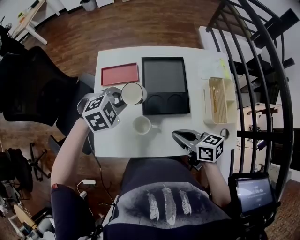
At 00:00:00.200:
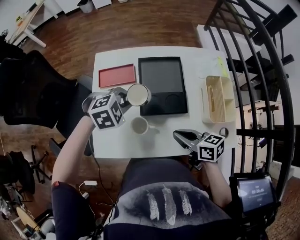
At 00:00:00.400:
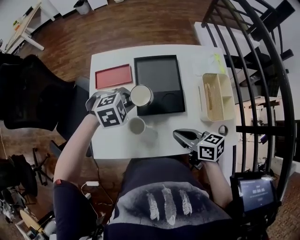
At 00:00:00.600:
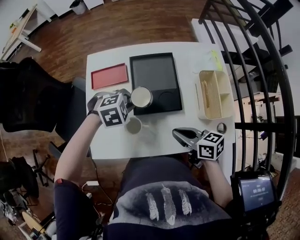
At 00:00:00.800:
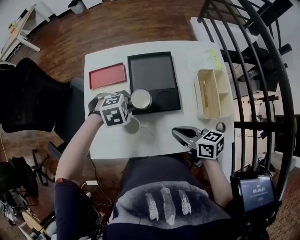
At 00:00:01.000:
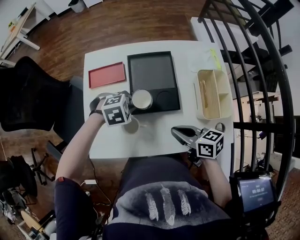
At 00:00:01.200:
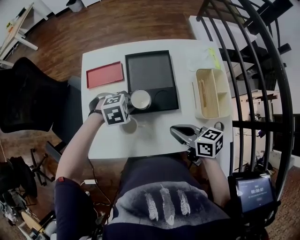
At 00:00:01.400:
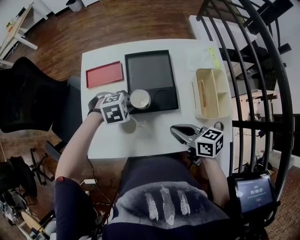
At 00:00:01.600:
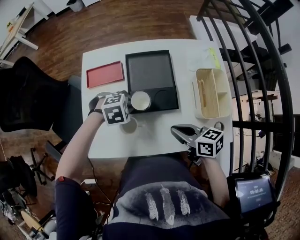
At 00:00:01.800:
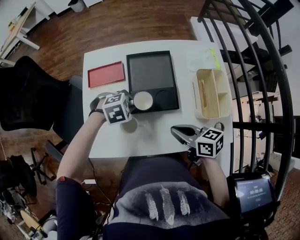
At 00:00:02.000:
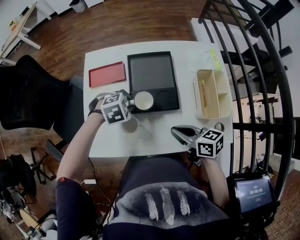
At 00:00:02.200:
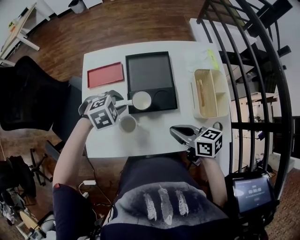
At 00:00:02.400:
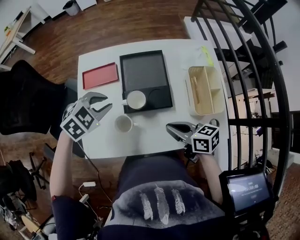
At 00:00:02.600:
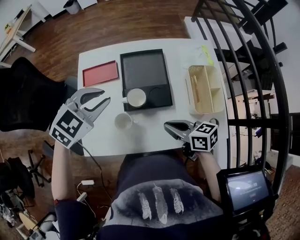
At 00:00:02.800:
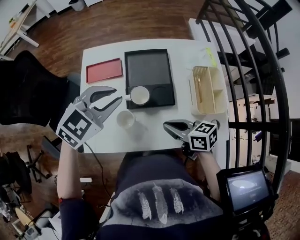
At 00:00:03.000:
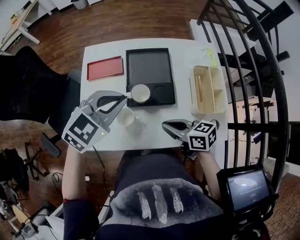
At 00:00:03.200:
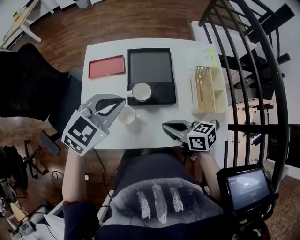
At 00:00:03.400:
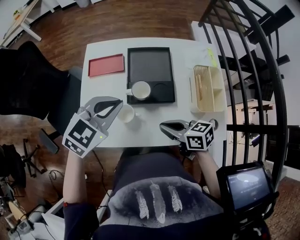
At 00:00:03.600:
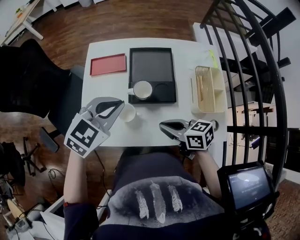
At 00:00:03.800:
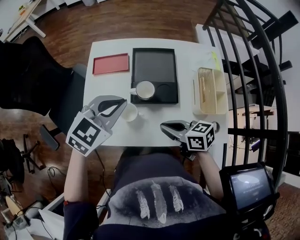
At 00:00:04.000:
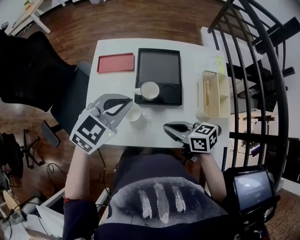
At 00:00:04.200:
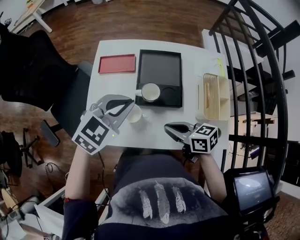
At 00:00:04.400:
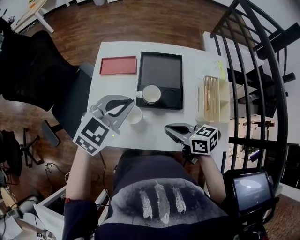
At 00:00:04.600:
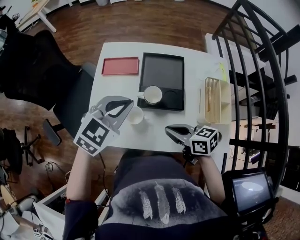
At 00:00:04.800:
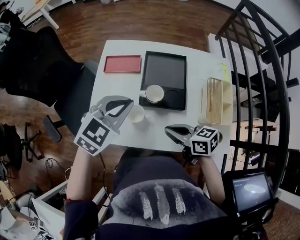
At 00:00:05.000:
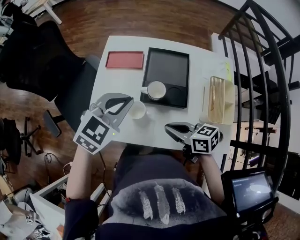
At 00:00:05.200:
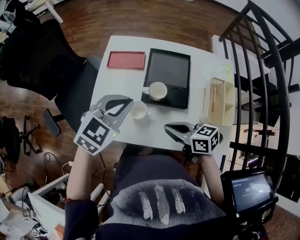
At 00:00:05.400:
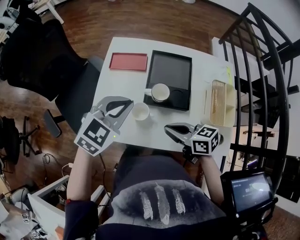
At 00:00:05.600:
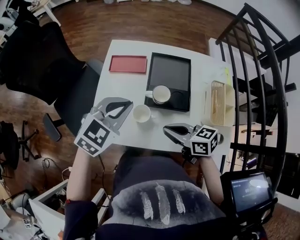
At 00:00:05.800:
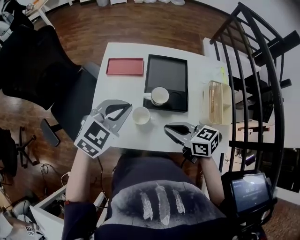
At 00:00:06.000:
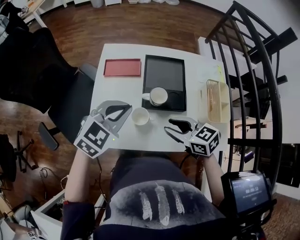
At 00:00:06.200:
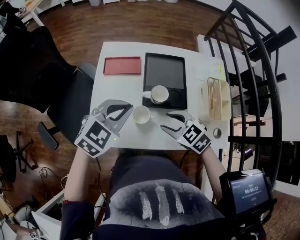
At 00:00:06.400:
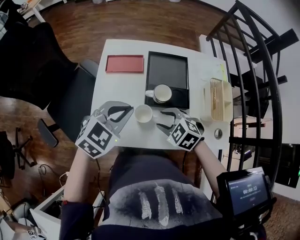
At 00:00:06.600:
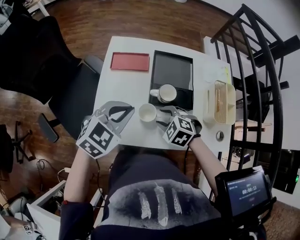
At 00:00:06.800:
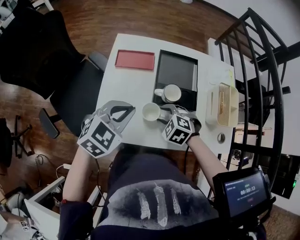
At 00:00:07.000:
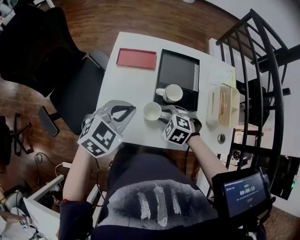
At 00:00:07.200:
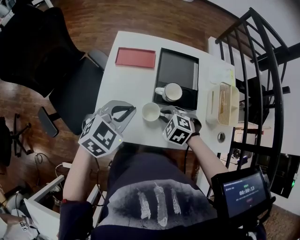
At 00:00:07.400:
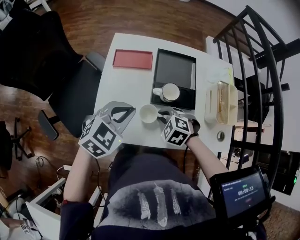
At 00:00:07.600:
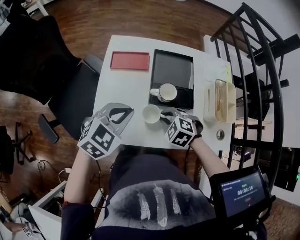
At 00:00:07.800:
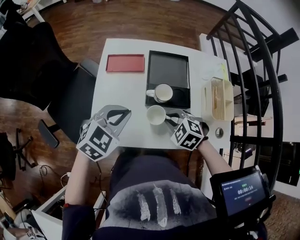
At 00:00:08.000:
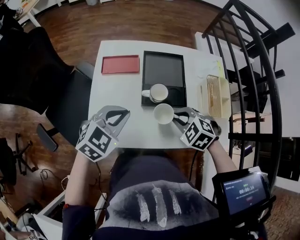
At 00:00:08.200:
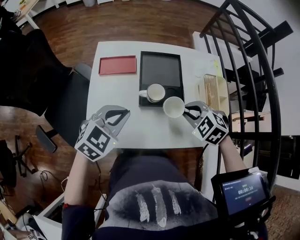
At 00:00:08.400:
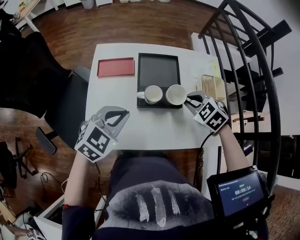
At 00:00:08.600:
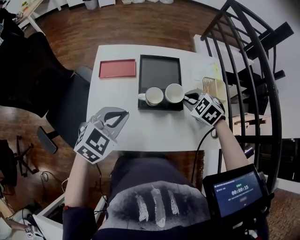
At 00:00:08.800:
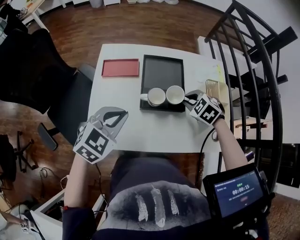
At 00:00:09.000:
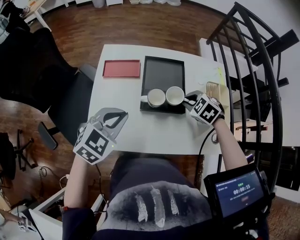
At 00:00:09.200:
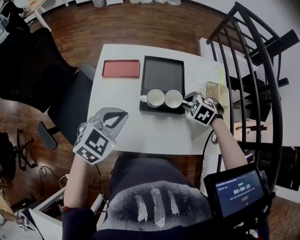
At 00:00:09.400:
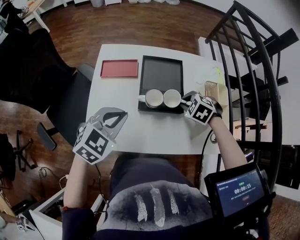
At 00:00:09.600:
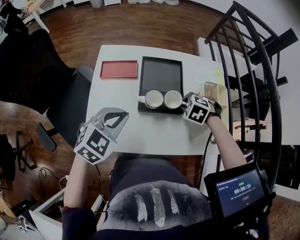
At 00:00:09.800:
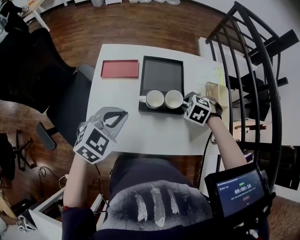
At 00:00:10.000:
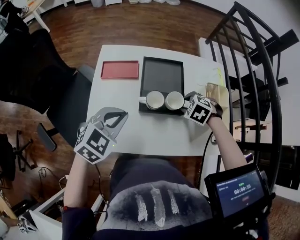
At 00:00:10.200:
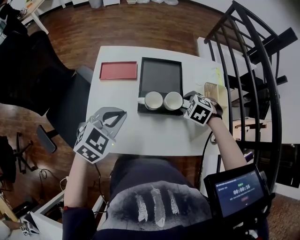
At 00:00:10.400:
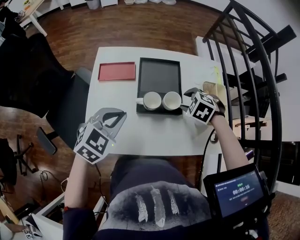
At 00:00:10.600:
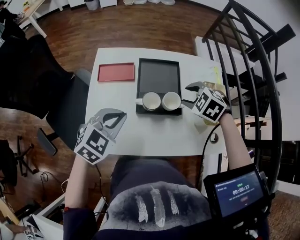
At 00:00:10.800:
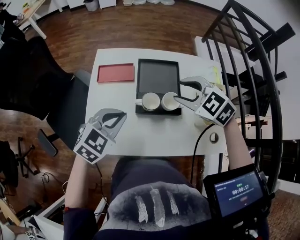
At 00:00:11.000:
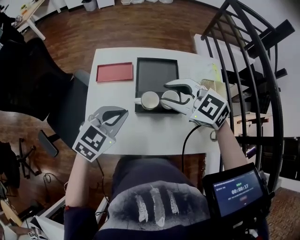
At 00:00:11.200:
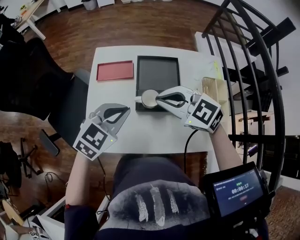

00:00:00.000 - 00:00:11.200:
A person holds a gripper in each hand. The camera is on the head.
00:00:00.000 - 00:00:01.600: The left gripper is displaced downward by about 10 cm.
00:00:01.600 - 00:00:03.200: The left gripper heads upward, covering roughly 20 cm, and points its fingers some 40 degrees further upward.
00:00:03.200 - 00:00:04.800: There are only small adjustments of the grippers.
00:00:04.800 - 00:00:06.400: The left gripper moves some 5 cm, while the right gripper moves to the left, roughly 5 cm, rotates around the line of its fingers by roughly 50 degrees, counterclockwise from behind, and opens.
00:00:06.400 - 00:00:08.000: The right gripper moves to the right, approximately 5 cm, and closes up.
00:00:08.000 - 00:00:09.600: The right gripper ends up about 10 cm from where it was.
00:00:09.600 - 00:00:11.200: The right gripper moves upward, roughly 15 cm, points its fingers about 50 degrees further upward, and opens, then closes again.

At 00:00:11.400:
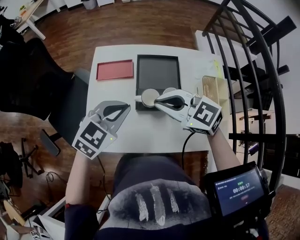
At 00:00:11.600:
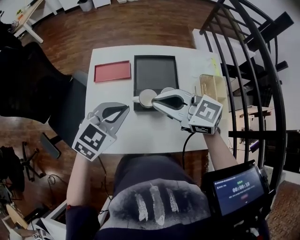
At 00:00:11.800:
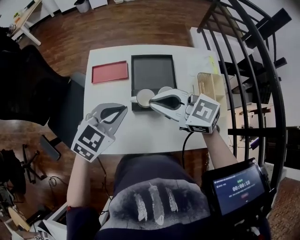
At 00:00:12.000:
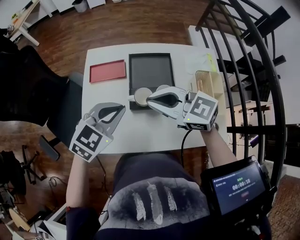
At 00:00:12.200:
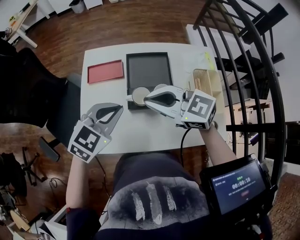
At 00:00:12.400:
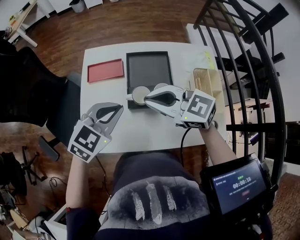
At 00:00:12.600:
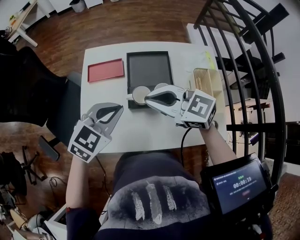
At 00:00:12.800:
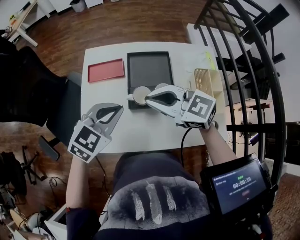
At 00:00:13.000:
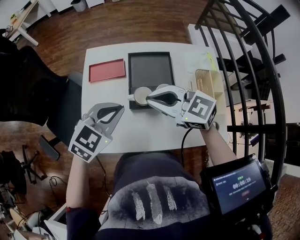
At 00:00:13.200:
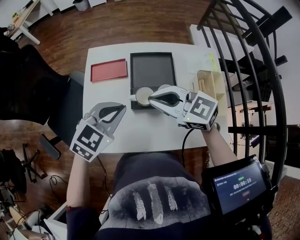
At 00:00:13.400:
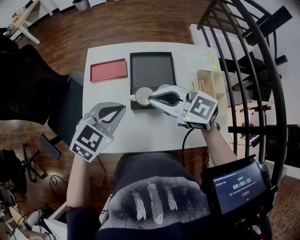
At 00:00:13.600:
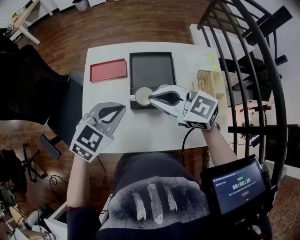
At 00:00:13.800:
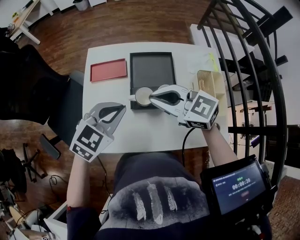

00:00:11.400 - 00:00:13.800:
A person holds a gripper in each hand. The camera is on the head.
00:00:11.400 - 00:00:13.800: The grippers move only a little.

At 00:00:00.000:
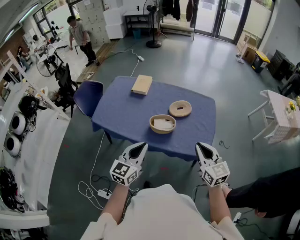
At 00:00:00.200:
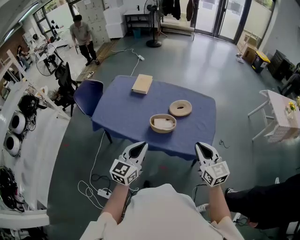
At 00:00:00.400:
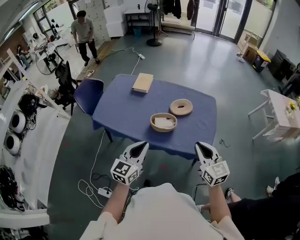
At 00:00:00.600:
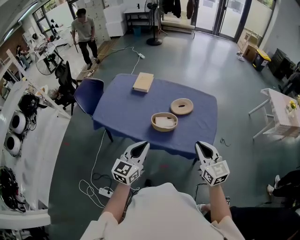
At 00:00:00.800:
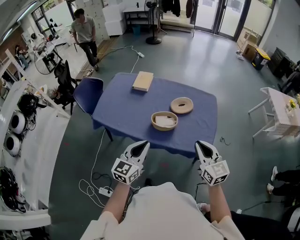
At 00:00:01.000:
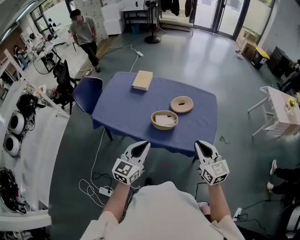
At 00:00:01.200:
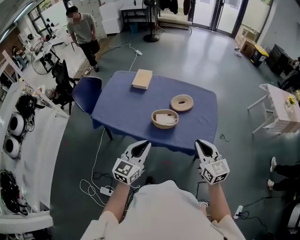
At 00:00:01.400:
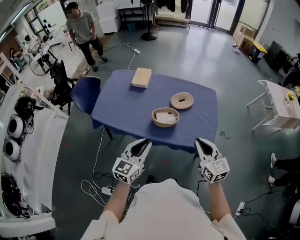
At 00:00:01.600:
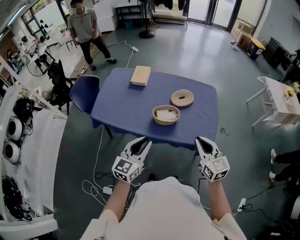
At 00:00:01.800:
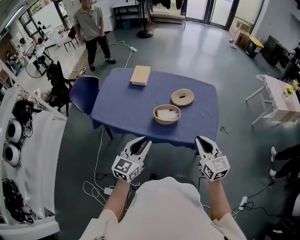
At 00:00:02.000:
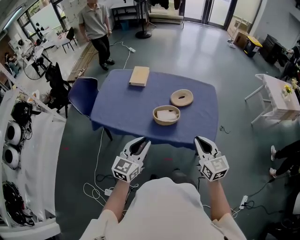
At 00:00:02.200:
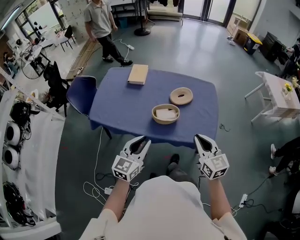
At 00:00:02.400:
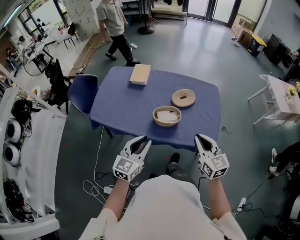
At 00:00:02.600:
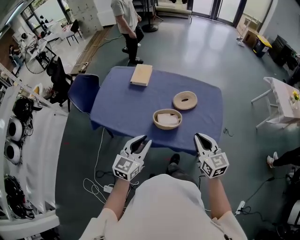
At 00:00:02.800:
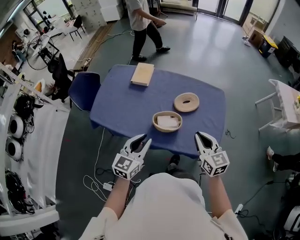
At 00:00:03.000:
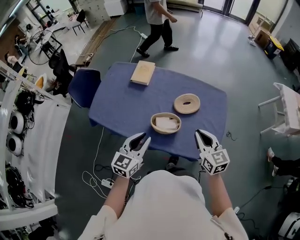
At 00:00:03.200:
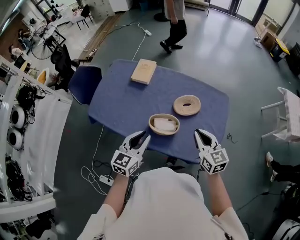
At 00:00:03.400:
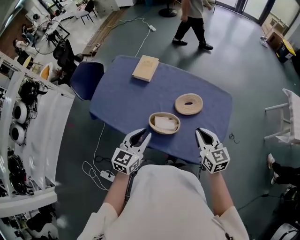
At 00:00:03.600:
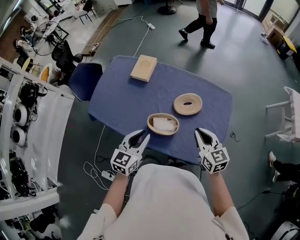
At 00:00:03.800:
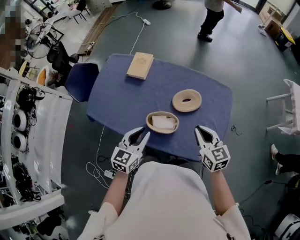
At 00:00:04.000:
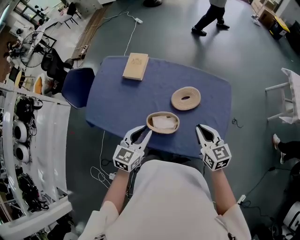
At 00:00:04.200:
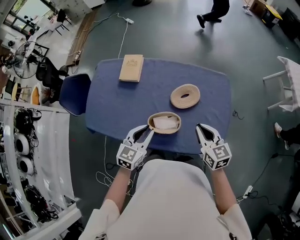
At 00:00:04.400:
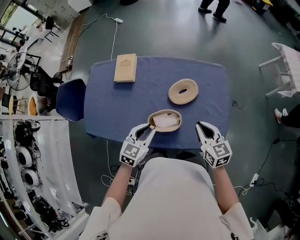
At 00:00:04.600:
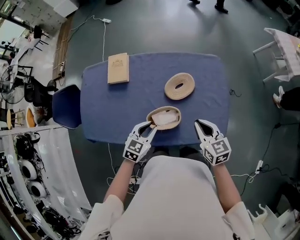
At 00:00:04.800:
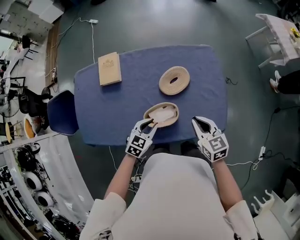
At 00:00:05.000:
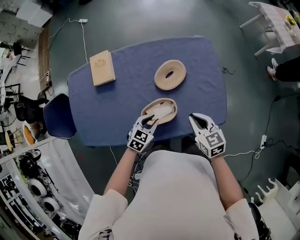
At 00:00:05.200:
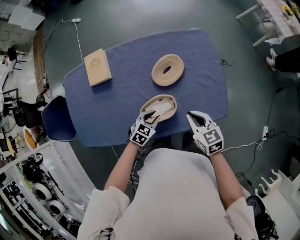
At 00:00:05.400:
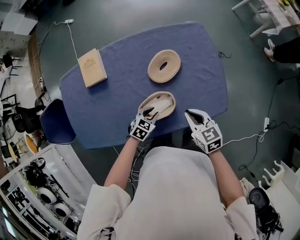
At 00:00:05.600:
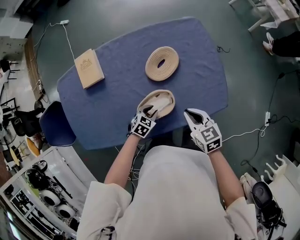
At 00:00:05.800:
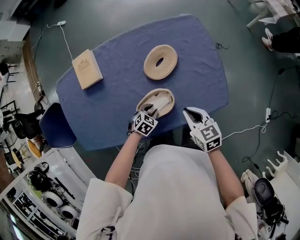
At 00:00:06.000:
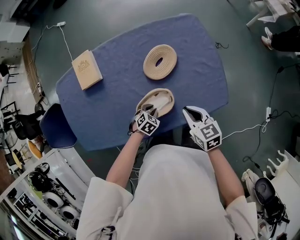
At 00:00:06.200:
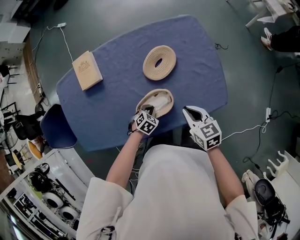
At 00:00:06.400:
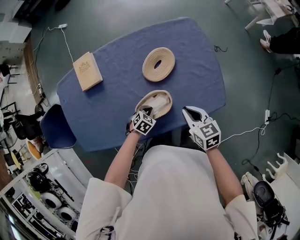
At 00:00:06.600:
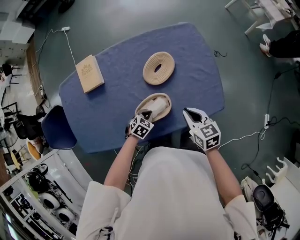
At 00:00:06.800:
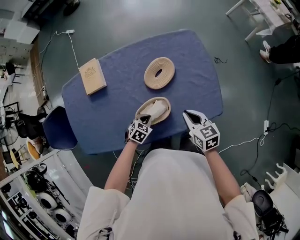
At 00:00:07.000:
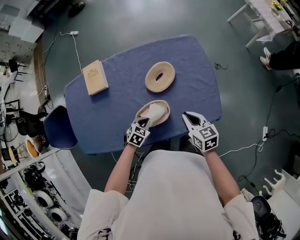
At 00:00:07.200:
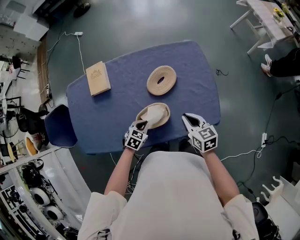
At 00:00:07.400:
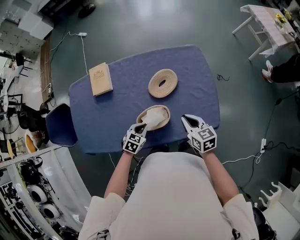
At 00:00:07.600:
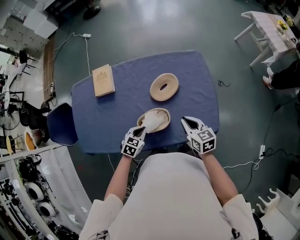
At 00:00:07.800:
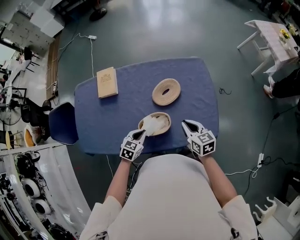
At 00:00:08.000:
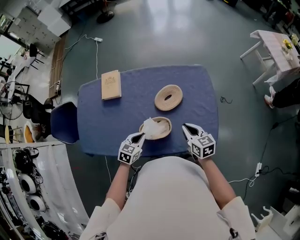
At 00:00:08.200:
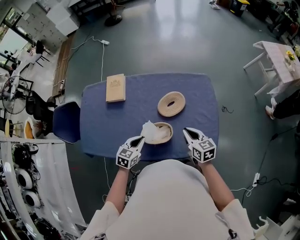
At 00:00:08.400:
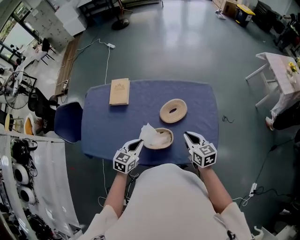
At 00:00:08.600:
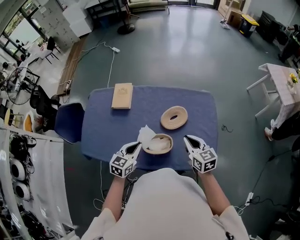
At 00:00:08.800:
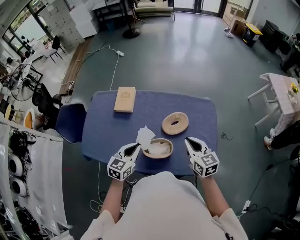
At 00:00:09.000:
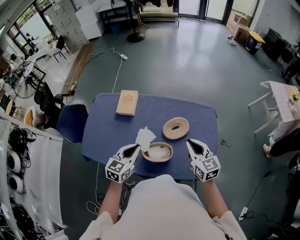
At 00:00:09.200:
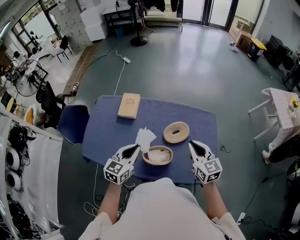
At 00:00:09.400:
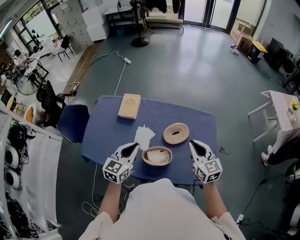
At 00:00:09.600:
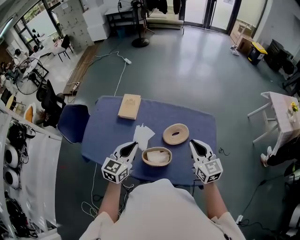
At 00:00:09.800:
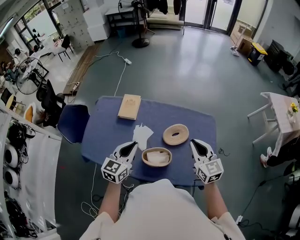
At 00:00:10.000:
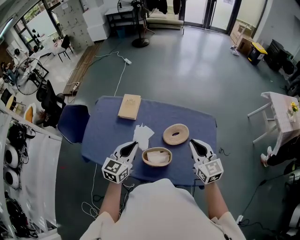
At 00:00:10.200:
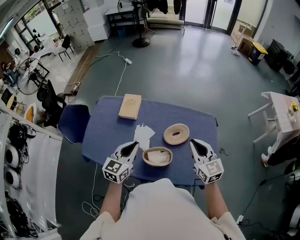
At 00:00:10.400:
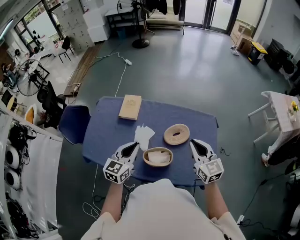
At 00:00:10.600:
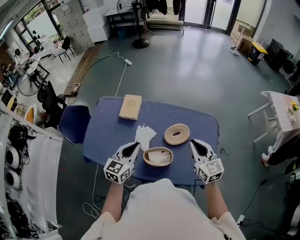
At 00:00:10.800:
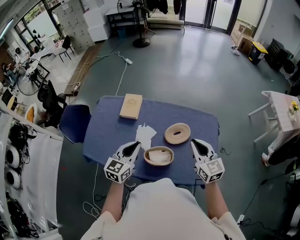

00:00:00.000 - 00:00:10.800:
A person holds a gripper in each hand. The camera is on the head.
00:00:00.000 - 00:00:01.600: The right gripper is displaced to the left by about 5 cm.
00:00:01.600 - 00:00:03.000: Both grippers travel together forward, approximately 20 cm.
00:00:03.000 - 00:00:04.600: The right gripper shifts roughly 10 cm downward and forward, while the left gripper goes roughly 20 cm downward and forward, and turns by roughly 30 degrees.
00:00:04.600 - 00:00:06.200: The right gripper goes approximately 10 cm downward, while the left gripper shifts roughly 25 cm downward, and points its fingers roughly 30 degrees further downward.
00:00:06.200 - 00:00:07.800: The left gripper travels upward by roughly 15 cm, and swivels roughly 30 degrees; the right gripper heads upward, covering approximately 5 cm.
00:00:07.800 - 00:00:09.200: The grippers both shift upward by about 20 cm. The right gripper changes its angle by about 30 degrees. Meanwhile the left gripper changes its angle by some 30 degrees.
00:00:09.200 - 00:00:10.800: There are only small adjustments of the grippers.
